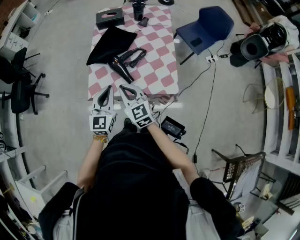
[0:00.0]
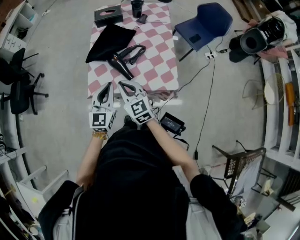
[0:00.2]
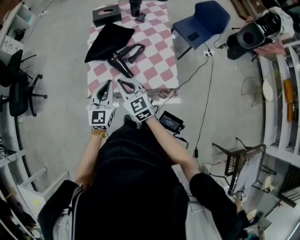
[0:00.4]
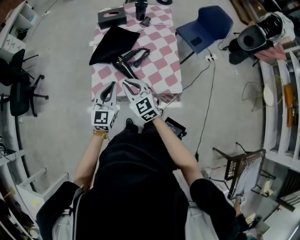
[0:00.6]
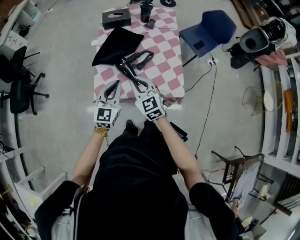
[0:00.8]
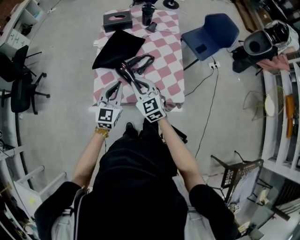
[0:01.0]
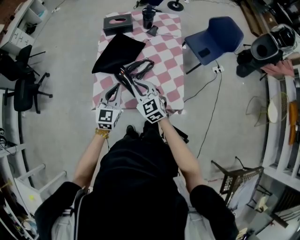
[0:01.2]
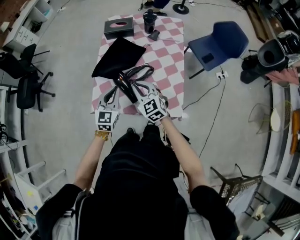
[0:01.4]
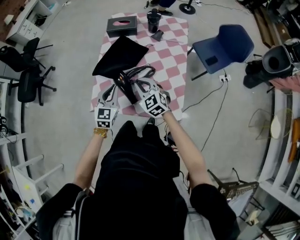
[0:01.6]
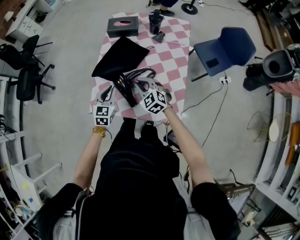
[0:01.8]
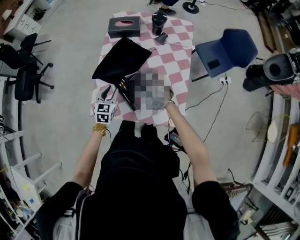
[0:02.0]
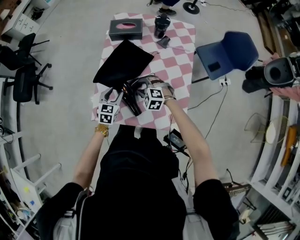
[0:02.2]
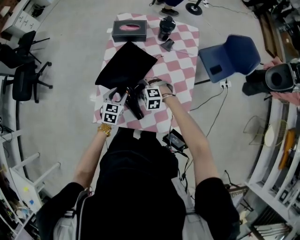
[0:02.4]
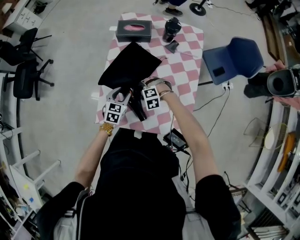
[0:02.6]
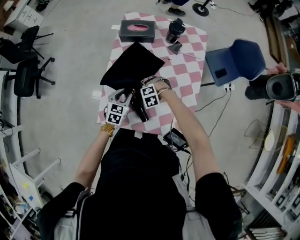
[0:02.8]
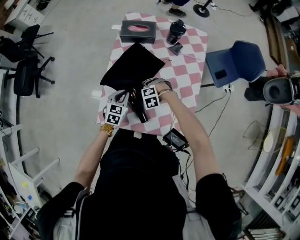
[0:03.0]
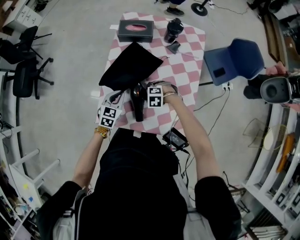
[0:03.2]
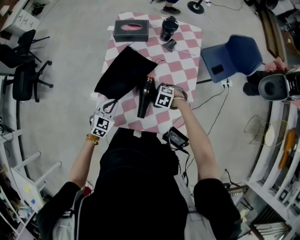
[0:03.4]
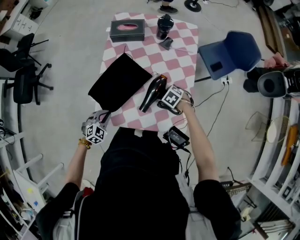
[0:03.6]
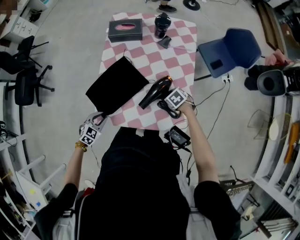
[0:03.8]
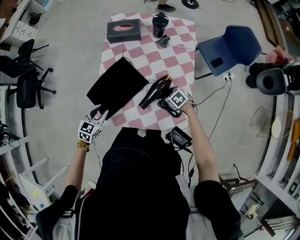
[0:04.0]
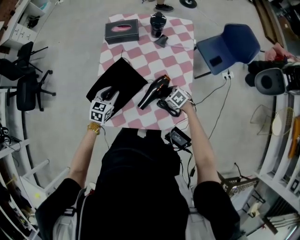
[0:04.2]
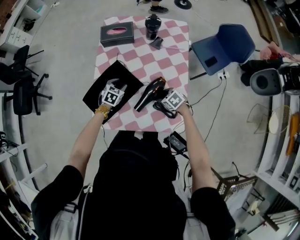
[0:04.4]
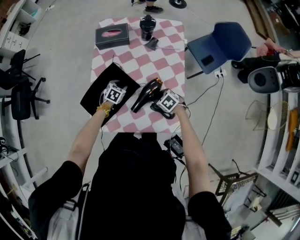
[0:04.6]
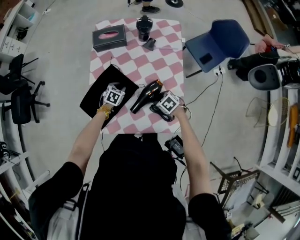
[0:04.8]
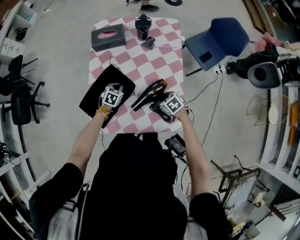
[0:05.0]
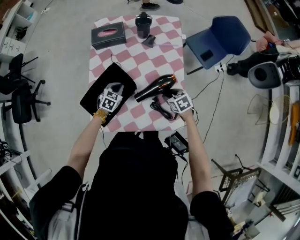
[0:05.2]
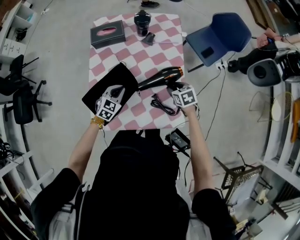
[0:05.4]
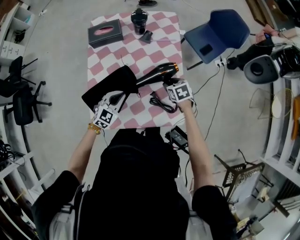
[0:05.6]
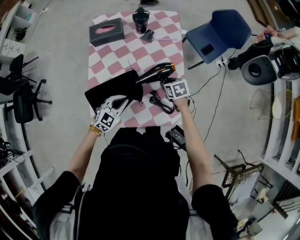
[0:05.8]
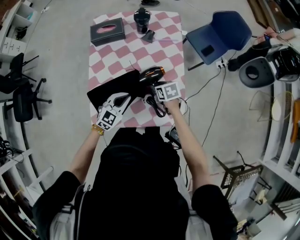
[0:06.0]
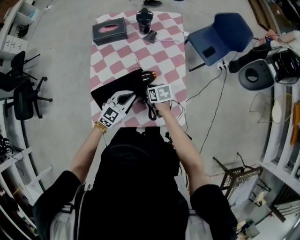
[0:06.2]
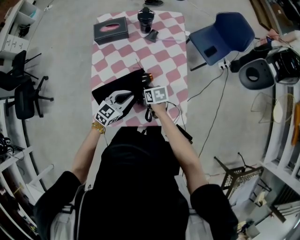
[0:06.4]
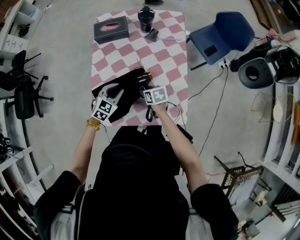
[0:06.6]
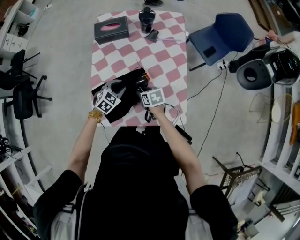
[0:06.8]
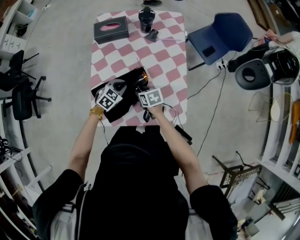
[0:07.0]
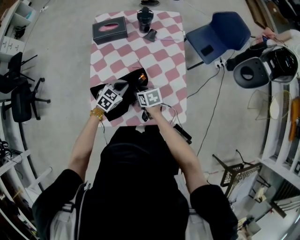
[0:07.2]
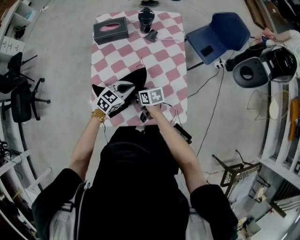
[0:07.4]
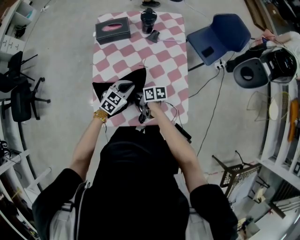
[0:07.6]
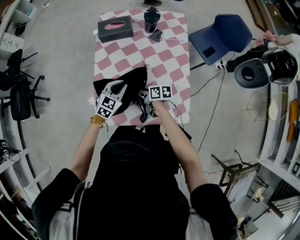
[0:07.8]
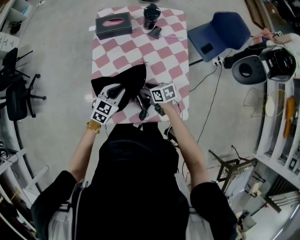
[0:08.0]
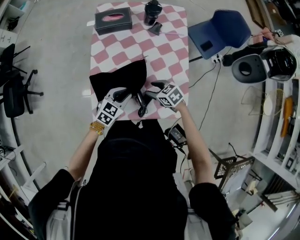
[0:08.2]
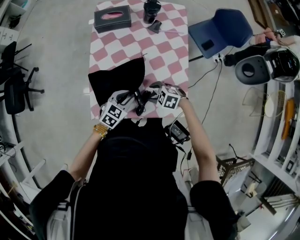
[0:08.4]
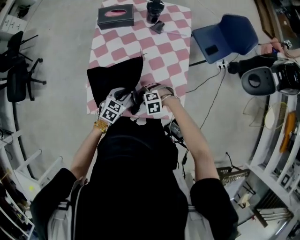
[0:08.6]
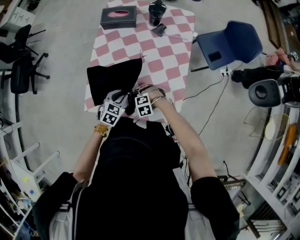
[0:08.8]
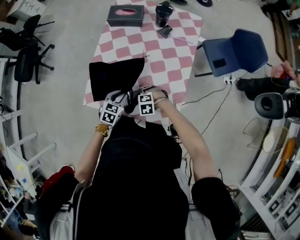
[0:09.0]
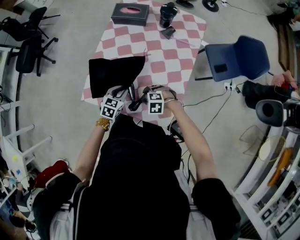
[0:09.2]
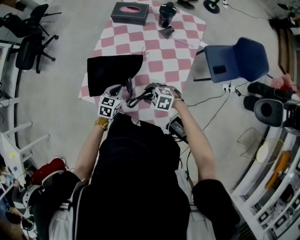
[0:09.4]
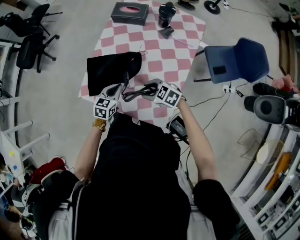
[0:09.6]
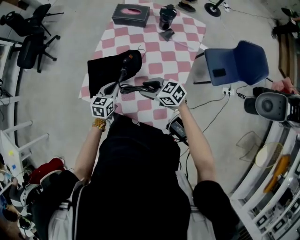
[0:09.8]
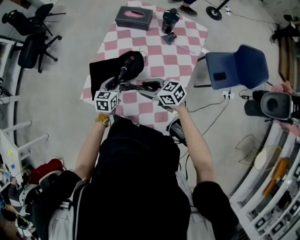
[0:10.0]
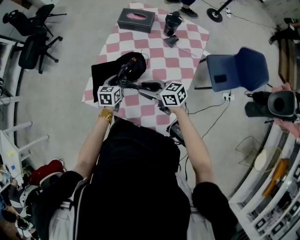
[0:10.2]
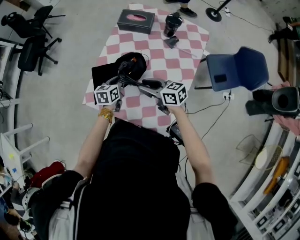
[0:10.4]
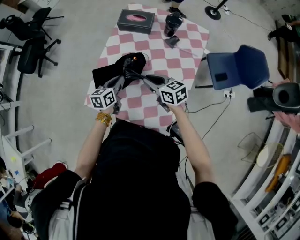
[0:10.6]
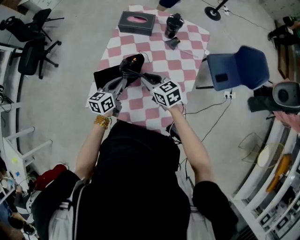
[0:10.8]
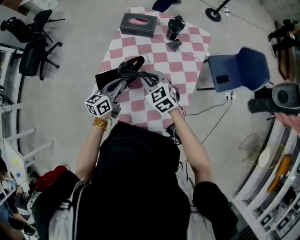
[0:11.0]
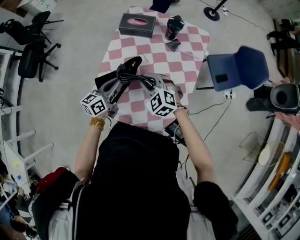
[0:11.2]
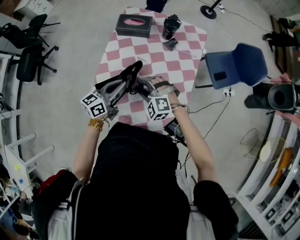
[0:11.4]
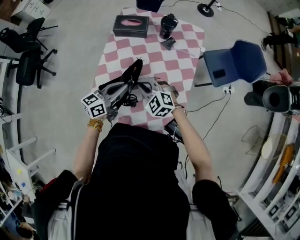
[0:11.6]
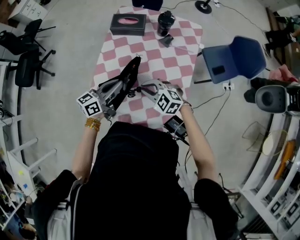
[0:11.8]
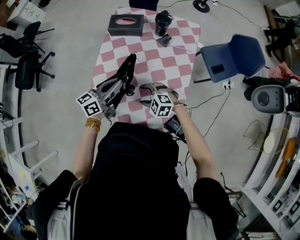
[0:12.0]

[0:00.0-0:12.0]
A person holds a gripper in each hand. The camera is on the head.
0:00.0 to 0:01.6: The left gripper goes approximately 15 cm forward and downward, while the right gripper is displaced forward, to the right and downward by some 20 cm, and rotates approximately 20 degrees.
0:01.6 to 0:03.0: The two grippers go roughly 15 cm downward. The left gripper rotates about 20 degrees, and opens and closes again. Meanwhile the right gripper angles its fingers downward, by roughly 50 degrees, and opens its fingers.
0:03.0 to 0:04.4: The right gripper ends up about 20 cm from where it was, and rolls clockwise, seen from behind, by about 70 degrees; the left gripper opens.
0:04.4 to 0:06.0: The left gripper shifts by some 20 cm, turns by some 30 degrees, and closes. Meanwhile the right gripper heads upward, covering about 5 cm, and turns by roughly 30 degrees.
0:06.0 to 0:07.6: The right gripper travels to the left by some 15 cm, and swivels about 30 degrees, while the left gripper travels downward and back again, roughly 5 cm each way, and opens, then closes again.
0:07.6 to 0:09.0: The right gripper moves about 15 cm, and rotates around the line of its fingers by roughly 100 degrees, counterclockwise from behind, while the left gripper changes place by roughly 10 cm, and turns by roughly 40 degrees.
0:09.0 to 0:10.4: The right gripper goes about 20 cm upward, and angles its fingers upward, by roughly 50 degrees. Meanwhile the left gripper shifts by approximately 10 cm, and turns by some 40 degrees.
0:10.4 to 0:12.0: The left gripper travels upward by about 15 cm, and tips its fingers upward by roughly 30 degrees, while the right gripper is displaced downward by approximately 10 cm, rotates around the line of its fingers by about 50 degrees, counterclockwise from behind, and closes, then opens again.

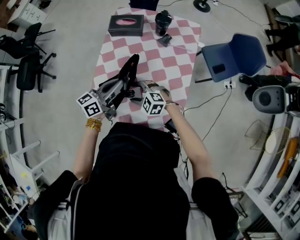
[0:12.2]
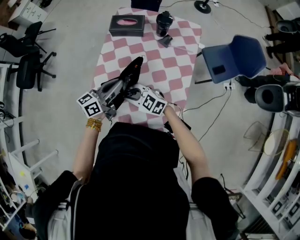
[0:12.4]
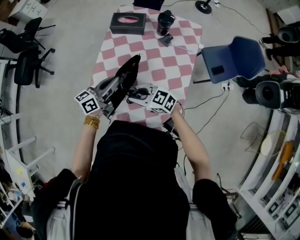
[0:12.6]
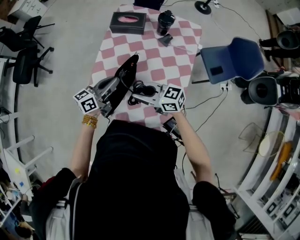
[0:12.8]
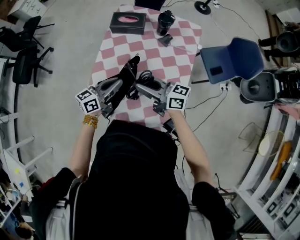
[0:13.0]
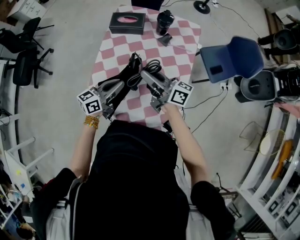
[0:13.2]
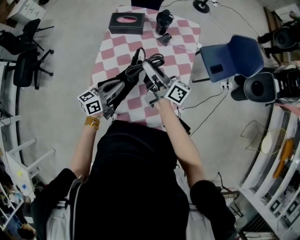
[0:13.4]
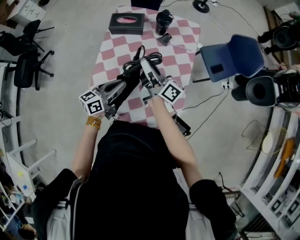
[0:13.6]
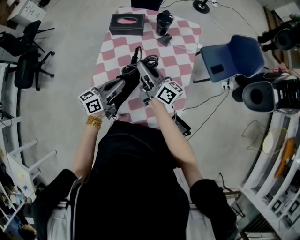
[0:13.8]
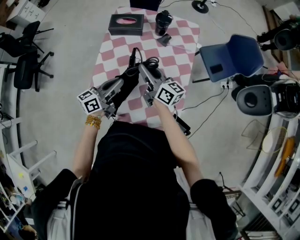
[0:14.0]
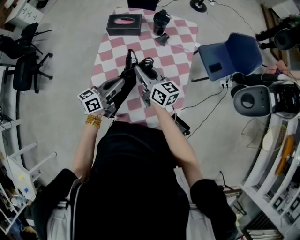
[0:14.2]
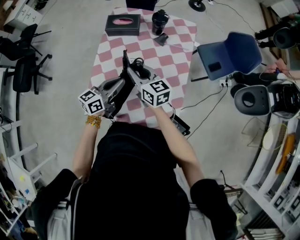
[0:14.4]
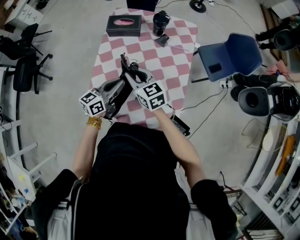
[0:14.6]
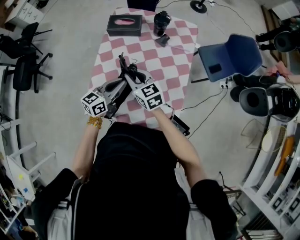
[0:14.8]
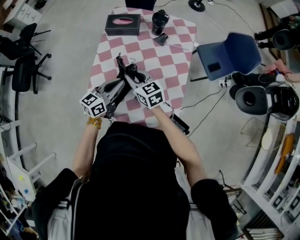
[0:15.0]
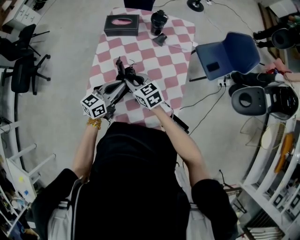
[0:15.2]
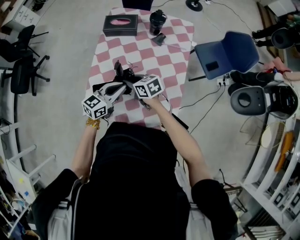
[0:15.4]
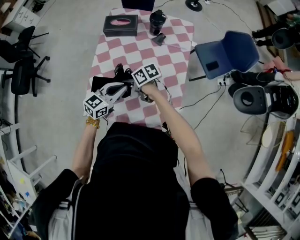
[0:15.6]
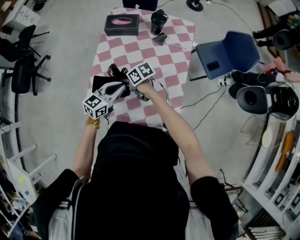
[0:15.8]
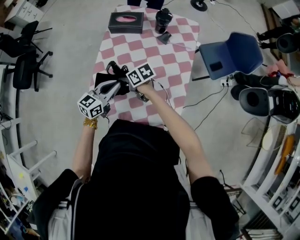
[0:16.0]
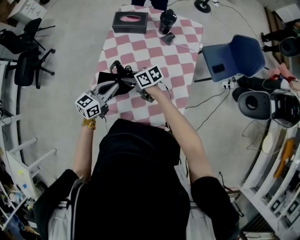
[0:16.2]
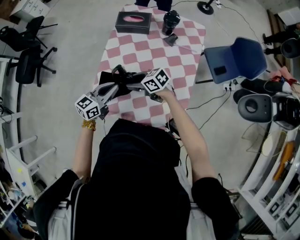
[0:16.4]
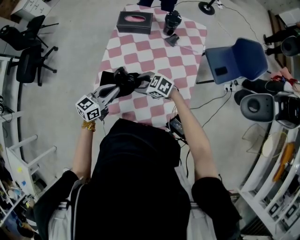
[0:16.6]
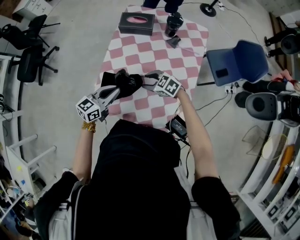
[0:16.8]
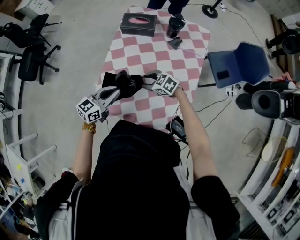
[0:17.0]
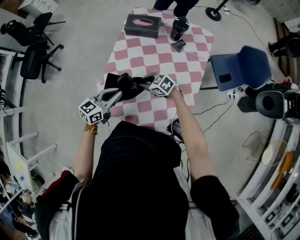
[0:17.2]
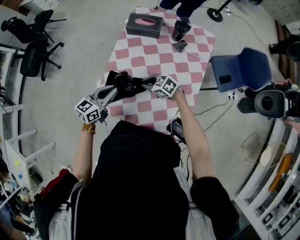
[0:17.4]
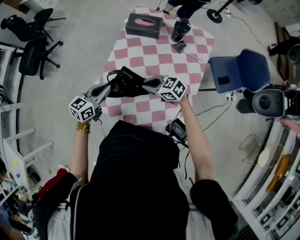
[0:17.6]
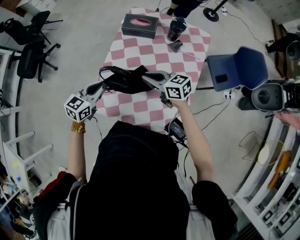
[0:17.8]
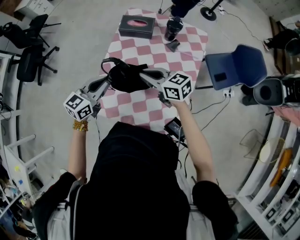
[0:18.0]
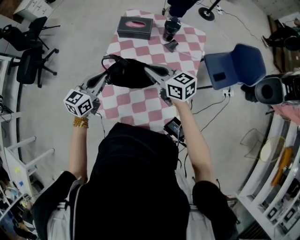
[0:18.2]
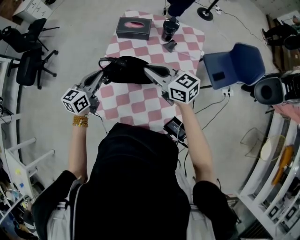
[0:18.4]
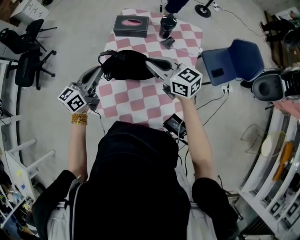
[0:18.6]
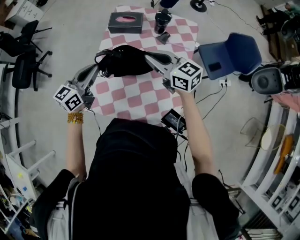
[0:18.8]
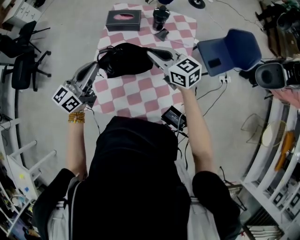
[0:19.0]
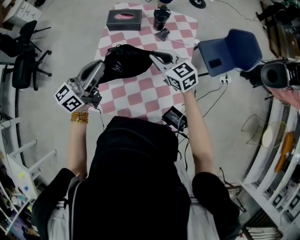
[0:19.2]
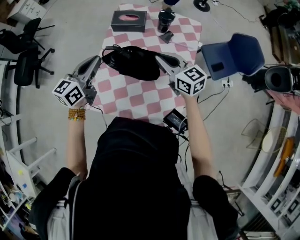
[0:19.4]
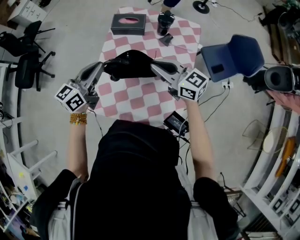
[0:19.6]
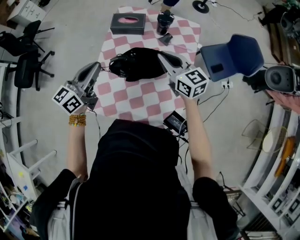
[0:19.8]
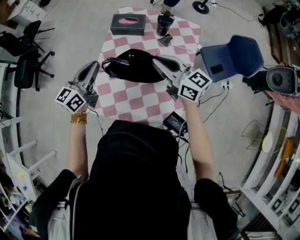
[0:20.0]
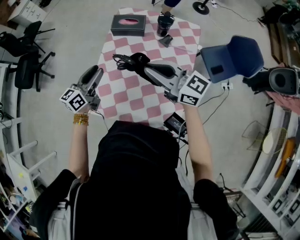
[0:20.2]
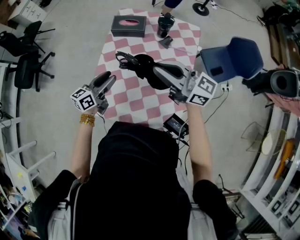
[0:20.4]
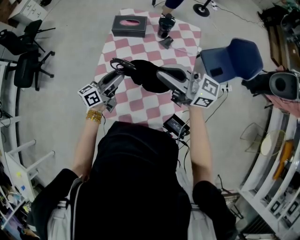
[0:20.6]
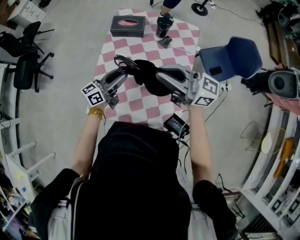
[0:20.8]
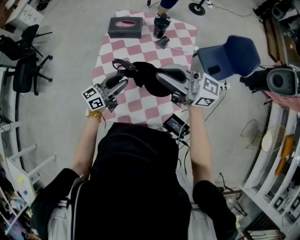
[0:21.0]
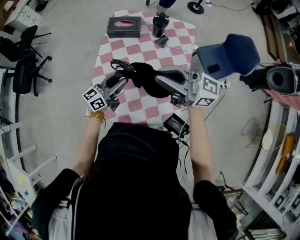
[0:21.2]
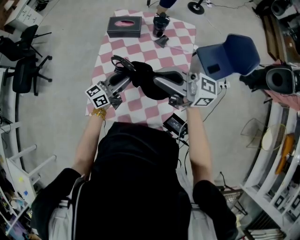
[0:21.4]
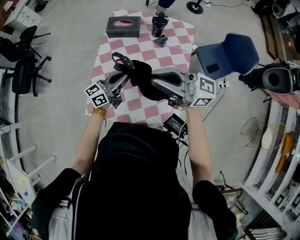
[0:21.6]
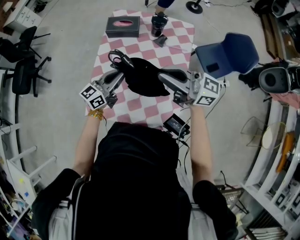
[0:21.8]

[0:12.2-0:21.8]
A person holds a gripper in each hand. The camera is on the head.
0:12.2 to 0:13.8: The right gripper shifts about 15 cm upward, tips its fingers upward by roughly 50 degrees, and closes up.
0:13.8 to 0:15.4: The left gripper changes its angle by approximately 20 degrees, while the right gripper travels downward, to the left and backward by roughly 15 cm, and tips its fingers downward by some 40 degrees.
0:15.4 to 0:17.0: The right gripper travels downward by some 5 cm, turns by some 40 degrees, and opens; the left gripper shifts by roughly 10 cm.
0:17.0 to 0:18.6: The right gripper goes about 25 cm upward, rotates some 40 degrees, and closes its fingers; the left gripper shifts some 10 cm upward.
0:18.6 to 0:20.2: The left gripper goes upward and returns, some 5 cm each way, and opens its fingers; the right gripper is displaced upward by approximately 5 cm.
0:20.2 to 0:21.8: The right gripper moves roughly 5 cm; the left gripper ends up some 10 cm from where it was, and closes.

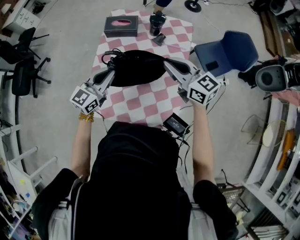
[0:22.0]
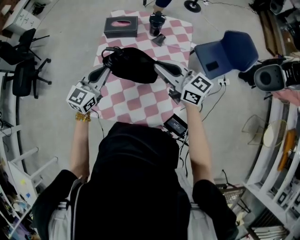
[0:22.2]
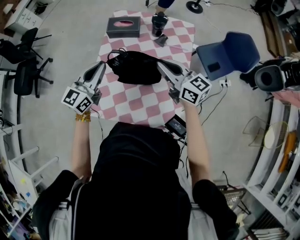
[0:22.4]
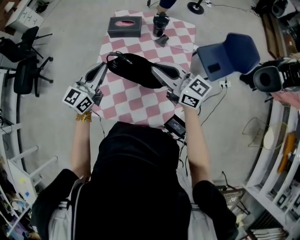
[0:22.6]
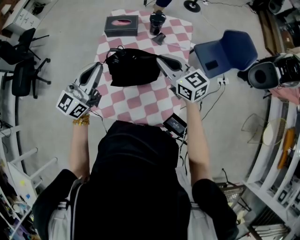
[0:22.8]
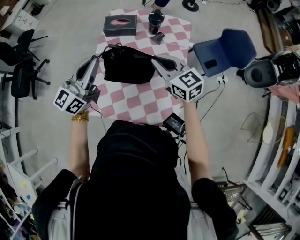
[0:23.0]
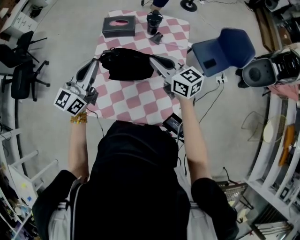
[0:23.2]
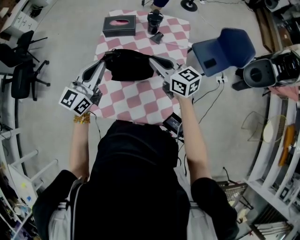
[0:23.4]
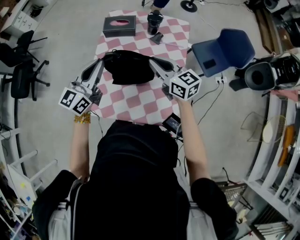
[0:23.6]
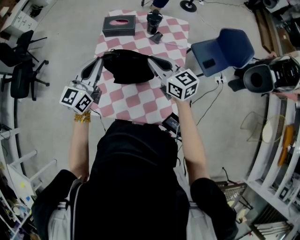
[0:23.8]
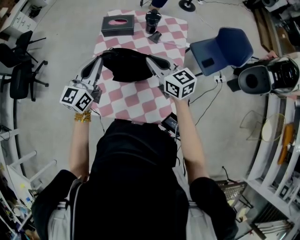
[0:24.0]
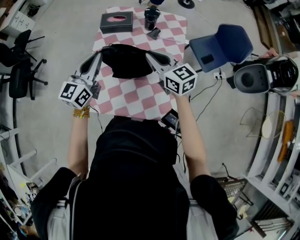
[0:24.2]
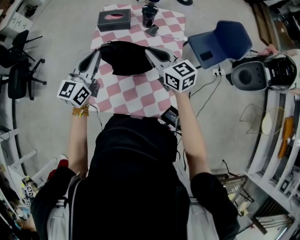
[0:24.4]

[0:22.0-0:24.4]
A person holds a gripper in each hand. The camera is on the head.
0:22.0 to 0:23.2: The left gripper moves upward, approximately 10 cm.
0:23.2 to 0:24.4: The grippers move only a little.
